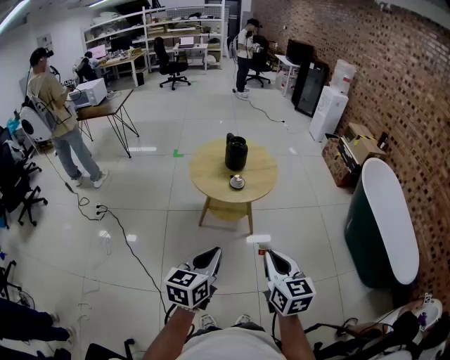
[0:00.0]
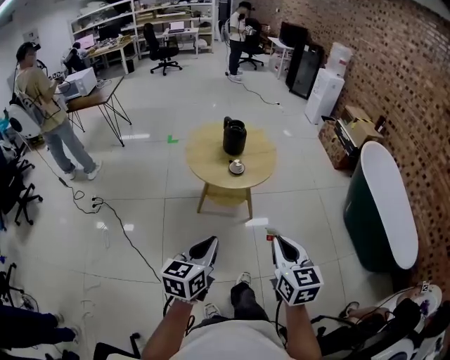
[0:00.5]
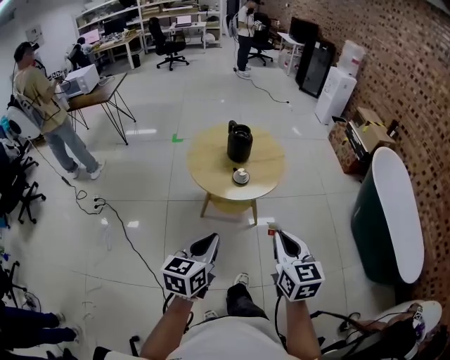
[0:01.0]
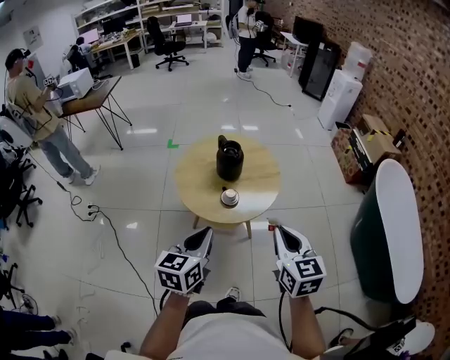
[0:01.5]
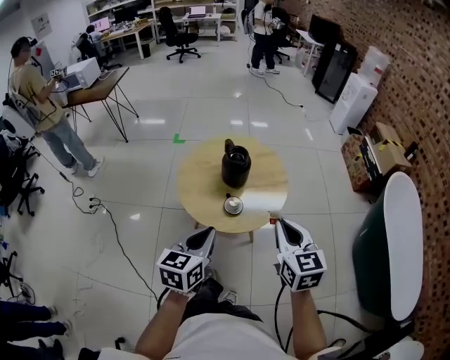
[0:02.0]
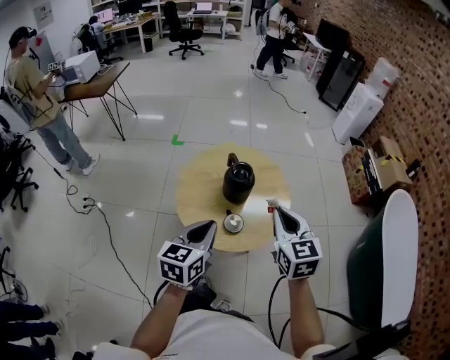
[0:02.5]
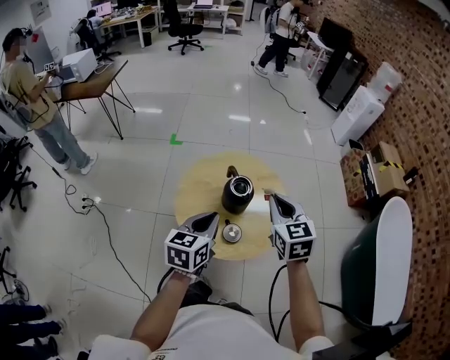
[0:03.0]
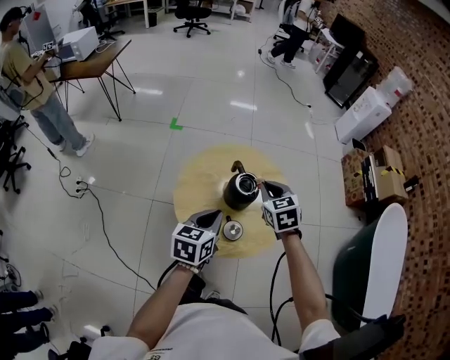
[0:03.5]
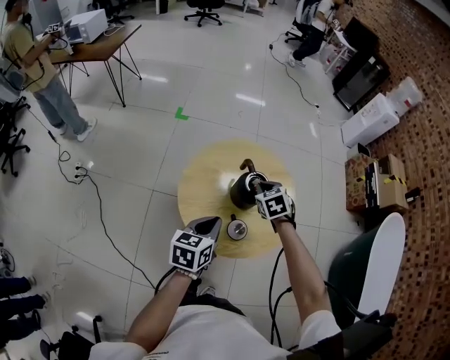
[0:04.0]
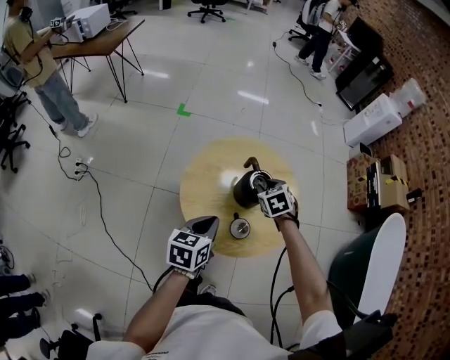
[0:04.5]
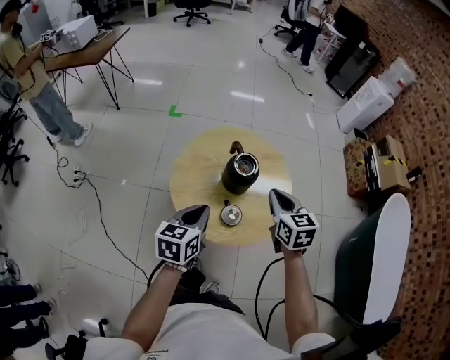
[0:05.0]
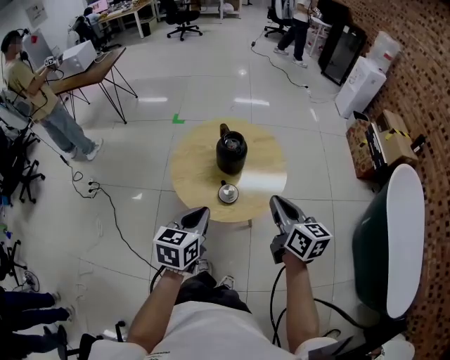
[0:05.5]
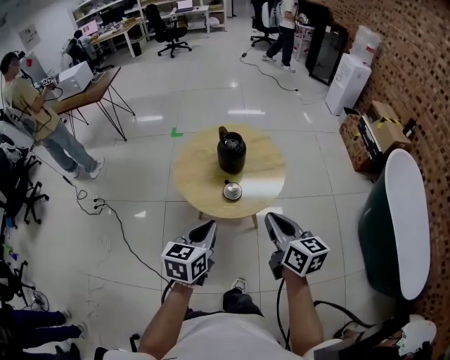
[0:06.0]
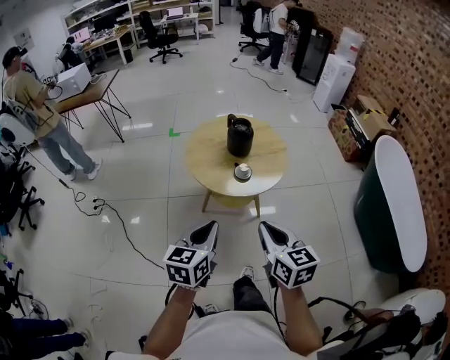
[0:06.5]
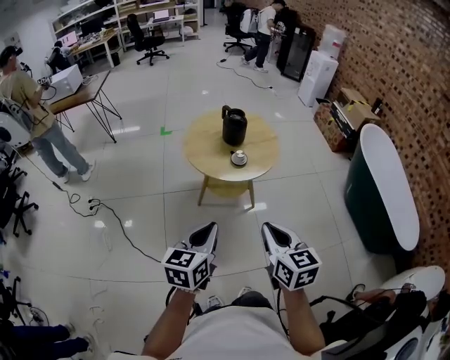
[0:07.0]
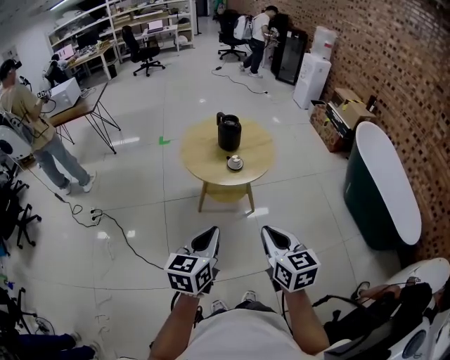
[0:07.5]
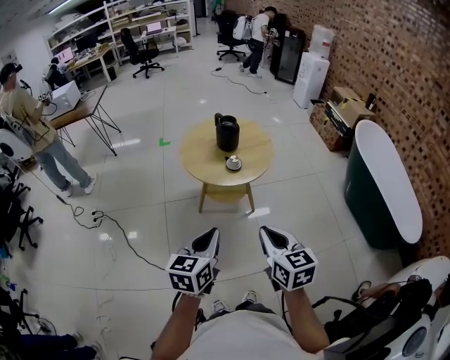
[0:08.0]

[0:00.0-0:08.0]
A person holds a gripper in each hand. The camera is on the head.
0:00.0 to 0:02.0: Both grippers travel together forward, some 35 cm.
0:02.0 to 0:04.0: The left gripper heads forward, covering some 20 cm, while the right gripper shifts roughly 35 cm forward and downward, and tips its fingers downward by approximately 30 degrees.
0:04.0 to 0:06.0: The left gripper goes approximately 20 cm backward. Meanwhile the right gripper travels backward by approximately 35 cm, tilts its fingers approximately 40 degrees upward, and opens and closes again.
0:06.0 to 0:08.0: The two grippers go approximately 25 cm backward.

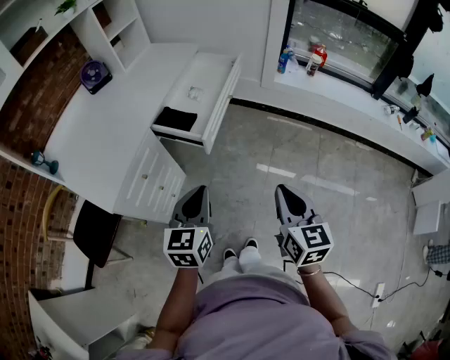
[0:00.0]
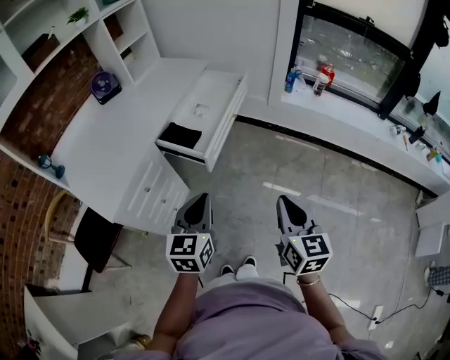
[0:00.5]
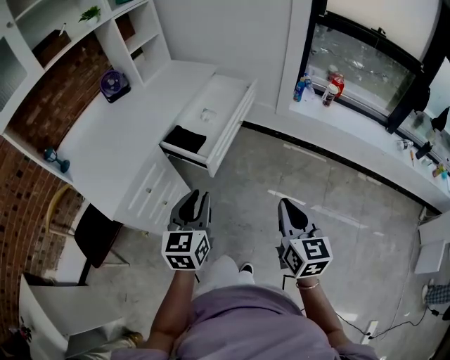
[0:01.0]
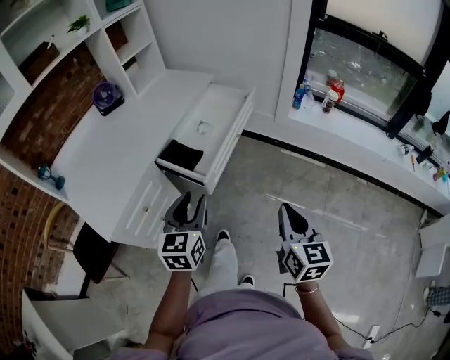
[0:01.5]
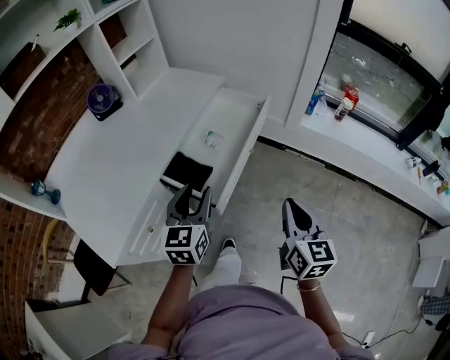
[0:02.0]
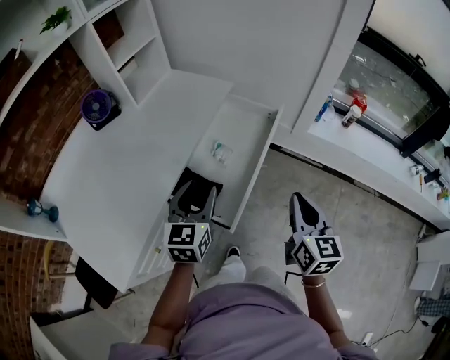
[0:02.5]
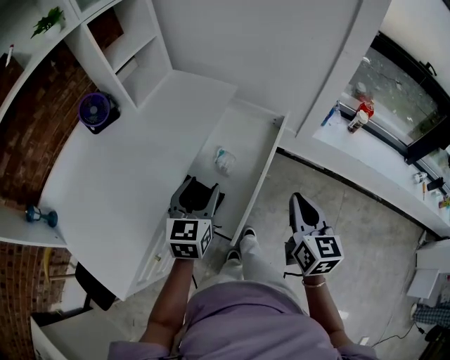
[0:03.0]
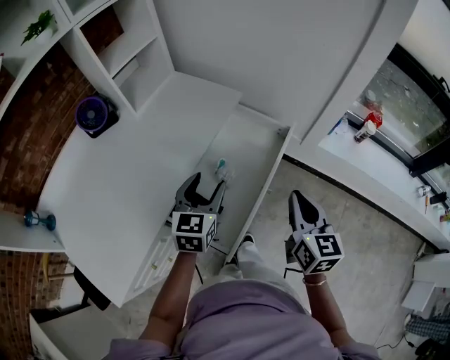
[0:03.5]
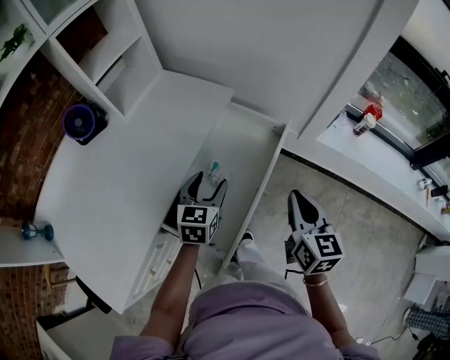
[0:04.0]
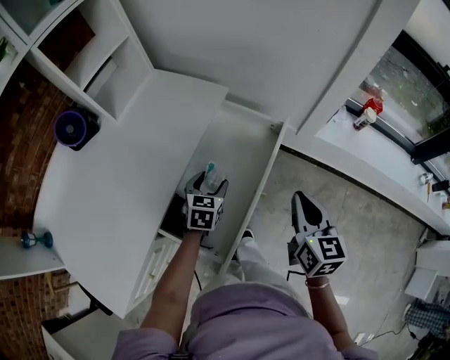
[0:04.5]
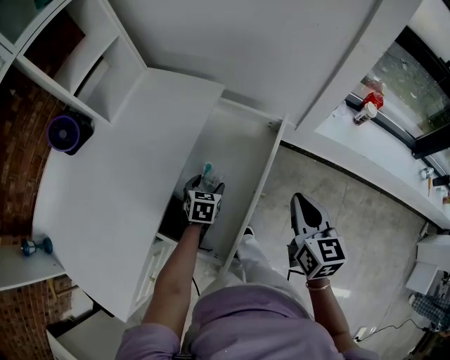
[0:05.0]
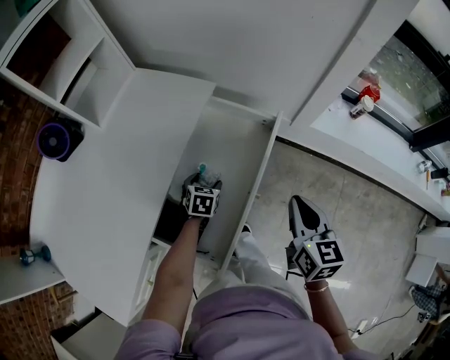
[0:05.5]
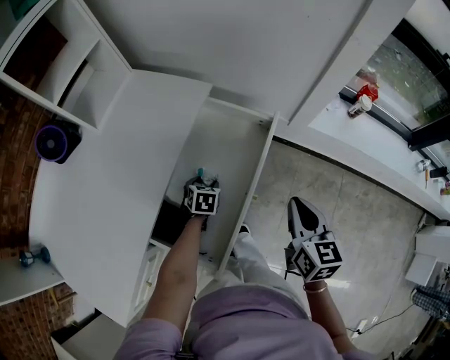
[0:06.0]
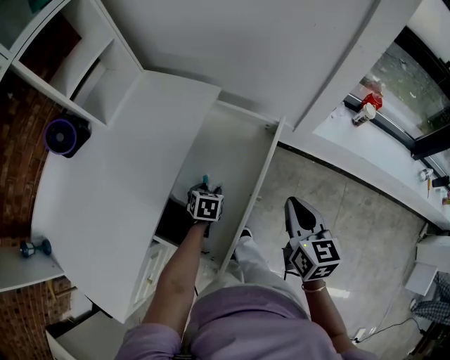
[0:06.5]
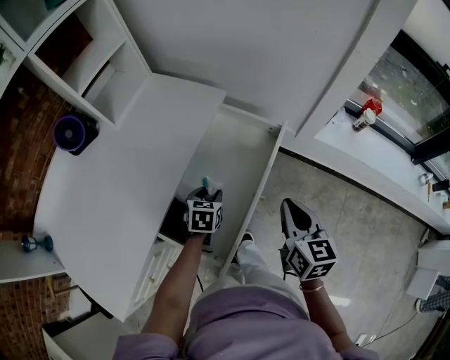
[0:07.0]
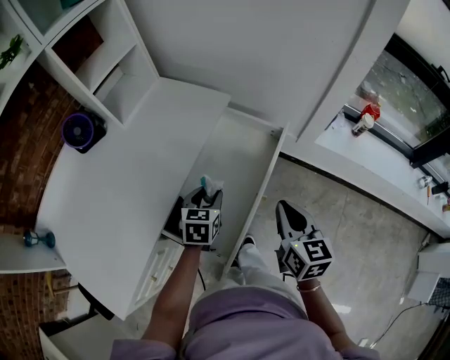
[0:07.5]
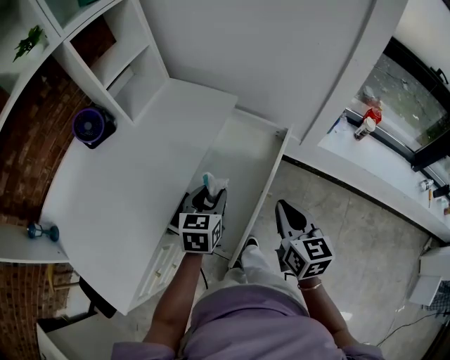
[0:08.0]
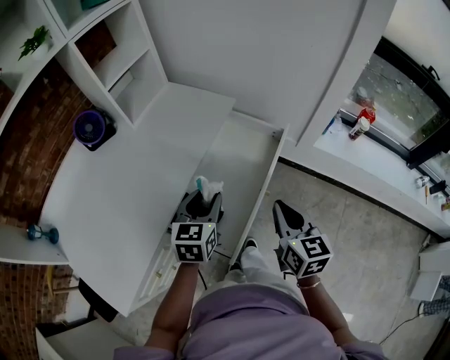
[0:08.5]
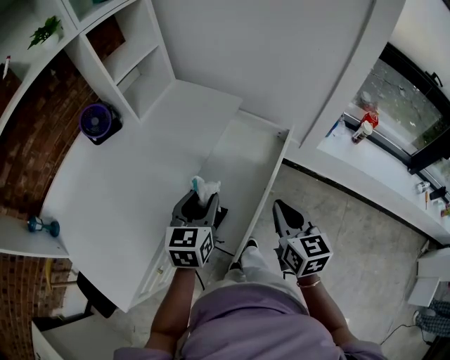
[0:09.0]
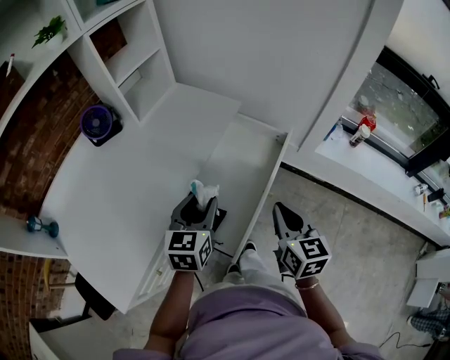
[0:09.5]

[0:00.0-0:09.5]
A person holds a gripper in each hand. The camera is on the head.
0:00.0 to 0:02.0: The two grippers go some 25 cm forward. The left gripper opens up.
0:02.0 to 0:04.0: Both grippers travel together forward, about 25 cm.
0:04.0 to 0:05.5: The right gripper ends up some 5 cm from where it was. Meanwhile the left gripper is displaced downward by roughly 20 cm, and changes its angle by some 30 degrees.
0:05.5 to 0:07.5: The right gripper shifts some 5 cm to the left. Meanwhile the left gripper heads upward and backward, covering roughly 15 cm, and closes its fingers.
0:07.5 to 0:09.5: The right gripper changes place by some 5 cm. The left gripper moves upward, backward and to the left, some 15 cm.

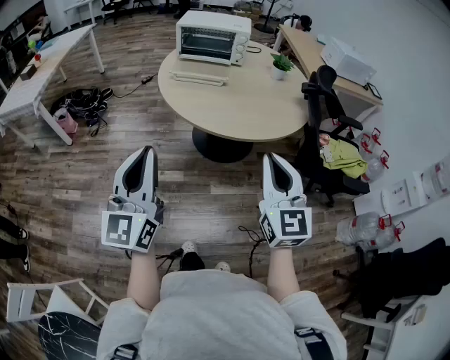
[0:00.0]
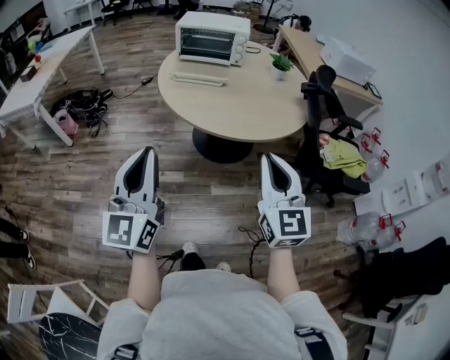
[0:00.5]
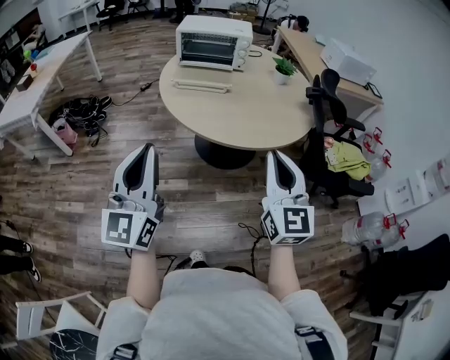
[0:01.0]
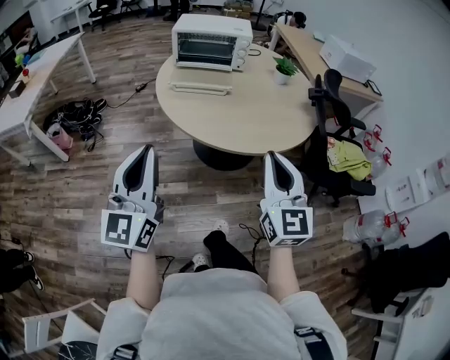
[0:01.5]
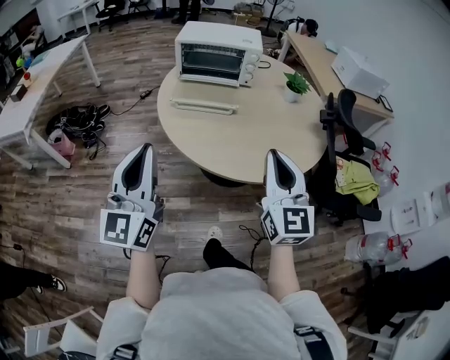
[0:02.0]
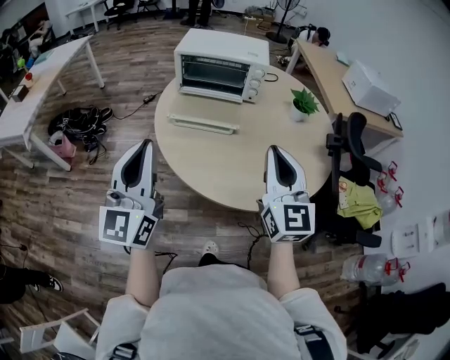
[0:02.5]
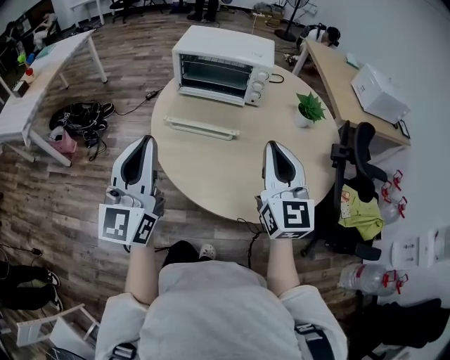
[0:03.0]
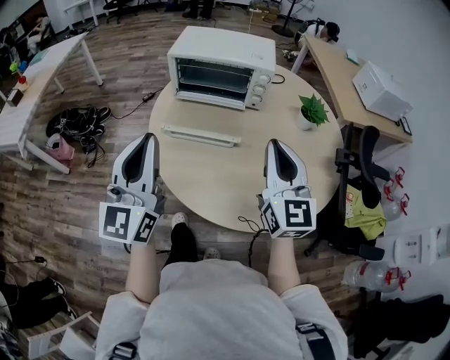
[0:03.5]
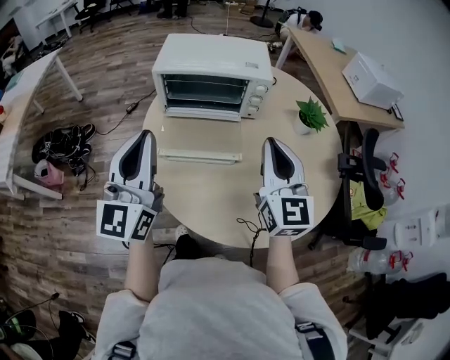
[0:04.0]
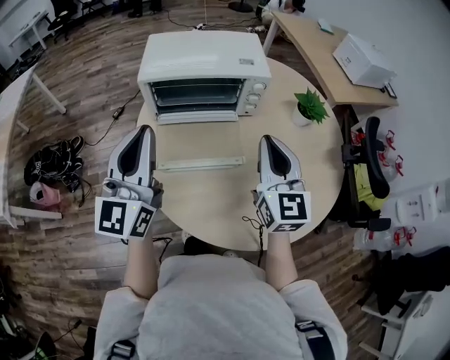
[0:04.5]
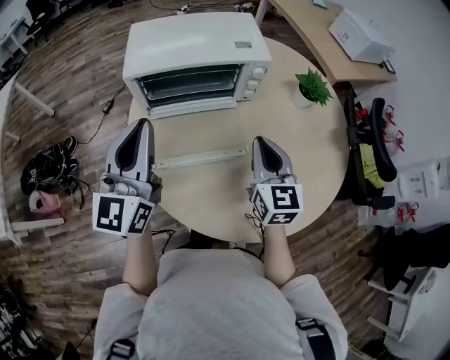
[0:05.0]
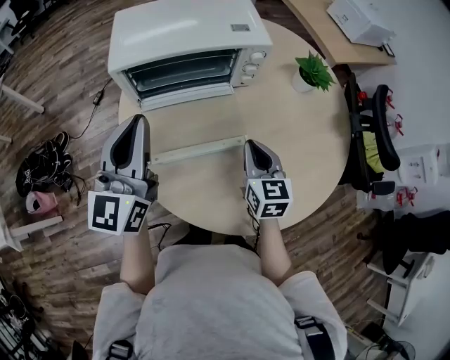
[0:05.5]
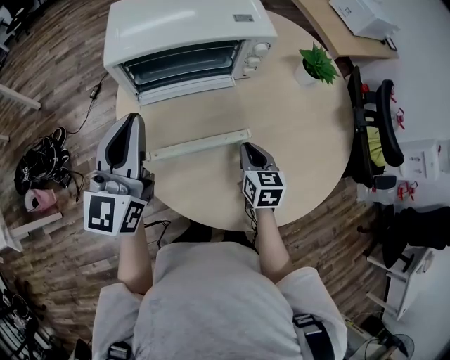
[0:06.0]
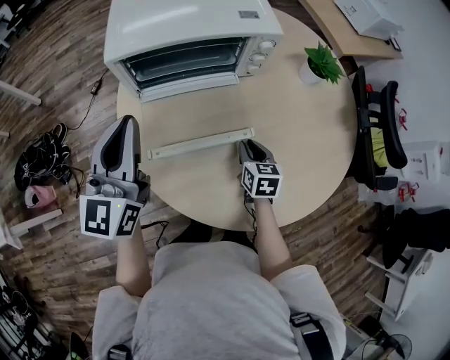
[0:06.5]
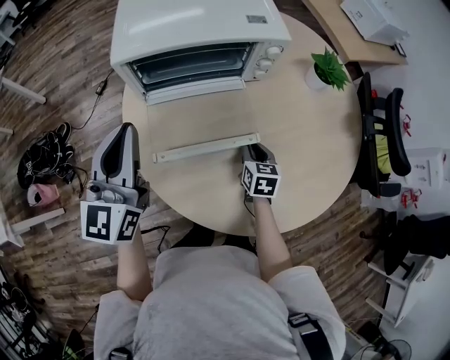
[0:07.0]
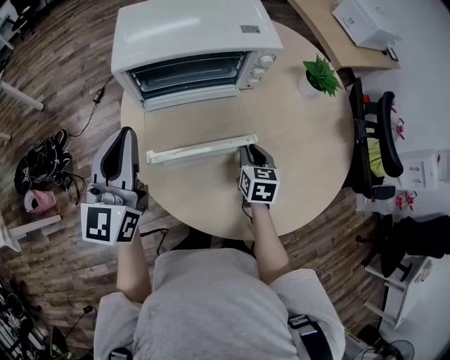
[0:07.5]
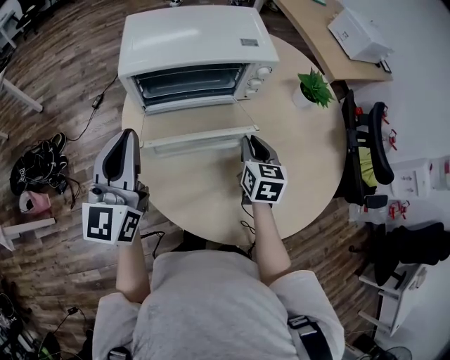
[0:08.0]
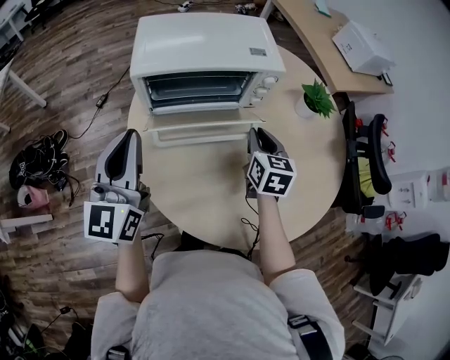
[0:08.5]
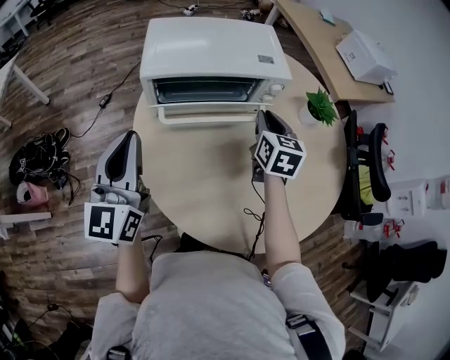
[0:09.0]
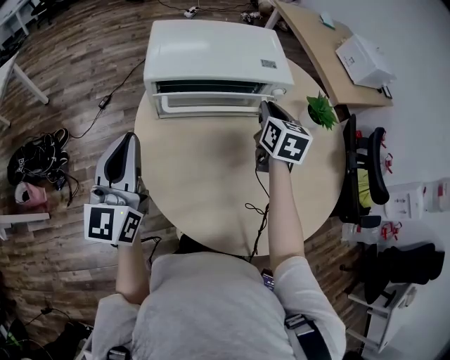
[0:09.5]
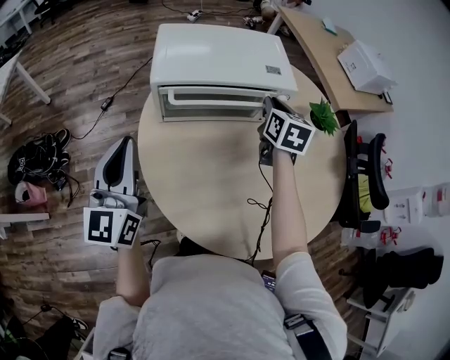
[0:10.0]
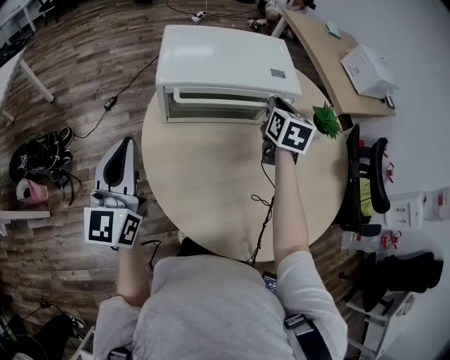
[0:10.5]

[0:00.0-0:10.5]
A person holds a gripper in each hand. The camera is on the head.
0:00.0 to 0:02.0: The grippers both shift forward by approximately 20 cm.
0:02.0 to 0:04.0: Both grippers travel together forward, roughly 35 cm.
0:04.0 to 0:06.5: The left gripper is displaced forward, downward and to the left by approximately 20 cm, while the right gripper heads downward, covering roughly 35 cm, and points its fingers about 40 degrees further downward.
0:06.5 to 0:08.5: The right gripper moves upward and forward, about 15 cm.
0:08.5 to 0:10.5: The left gripper goes approximately 5 cm to the left. The right gripper is displaced forward and upward by about 15 cm.
